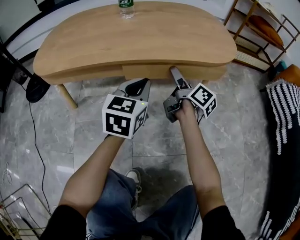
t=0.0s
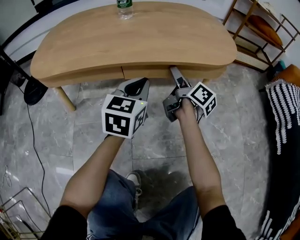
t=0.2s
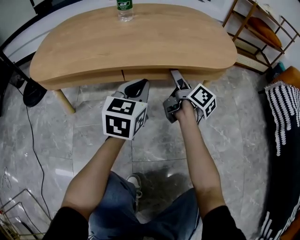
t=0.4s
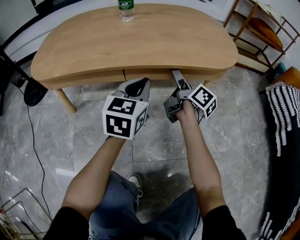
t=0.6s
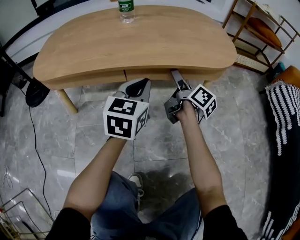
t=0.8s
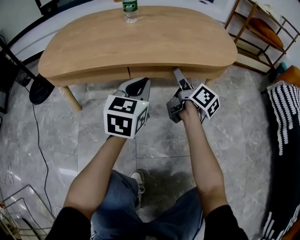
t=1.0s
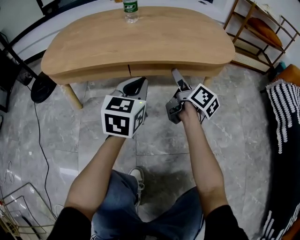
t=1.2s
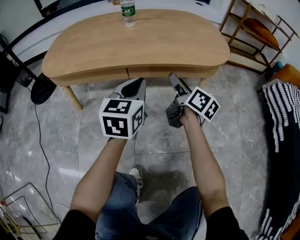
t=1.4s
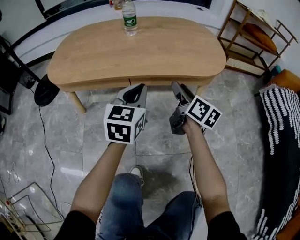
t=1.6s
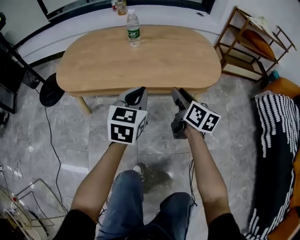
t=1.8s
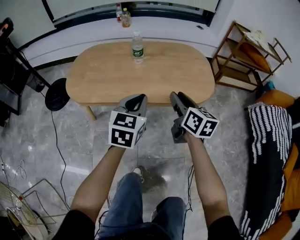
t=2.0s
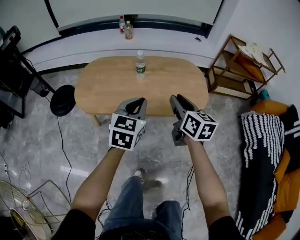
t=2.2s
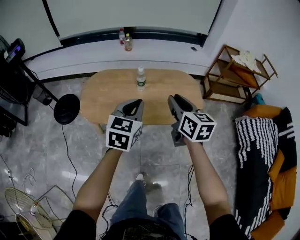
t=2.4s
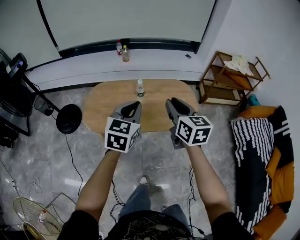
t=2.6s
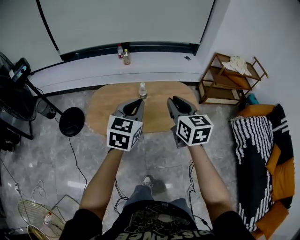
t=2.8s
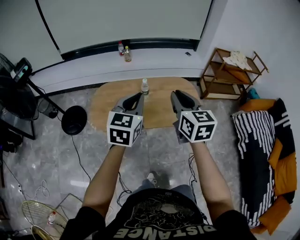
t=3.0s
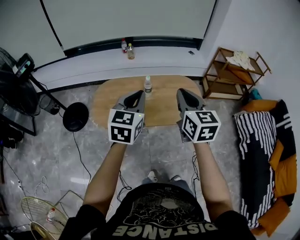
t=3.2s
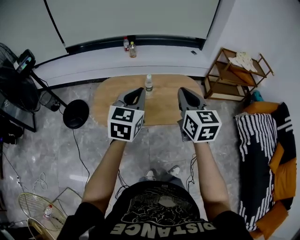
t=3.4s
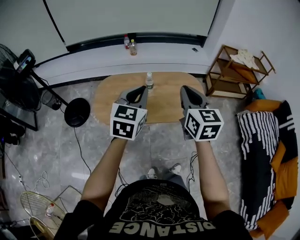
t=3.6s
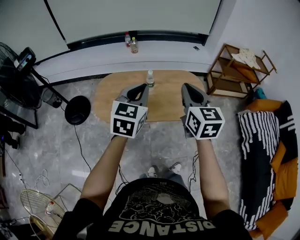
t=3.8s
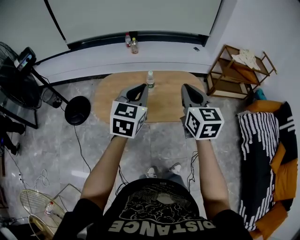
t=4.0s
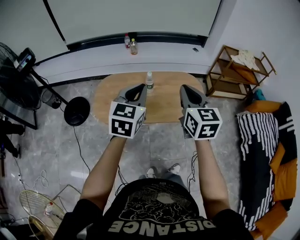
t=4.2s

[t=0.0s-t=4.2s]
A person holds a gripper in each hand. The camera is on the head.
t=0.0s to t=1.4s: The two grippers go approximately 5 cm upward.
t=1.4s to t=2.8s: Both grippers travel together upward, approximately 60 cm. The right gripper rotates around the line of its fingers by roughly 40 degrees, counterclockwise from behind, and closes.
t=2.8s to t=4.2s: The grippers make only small movements.

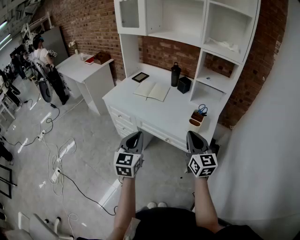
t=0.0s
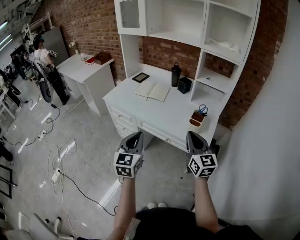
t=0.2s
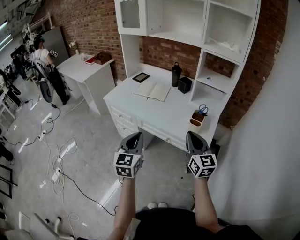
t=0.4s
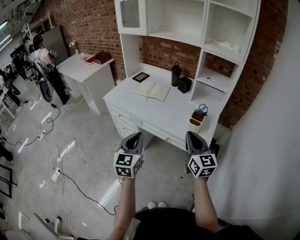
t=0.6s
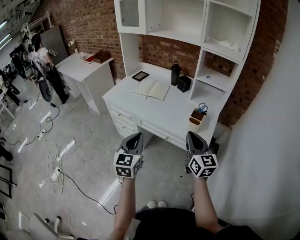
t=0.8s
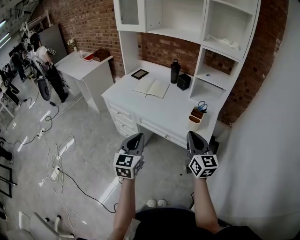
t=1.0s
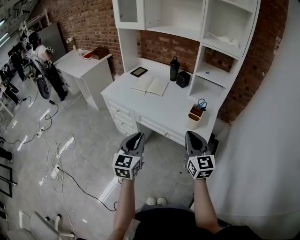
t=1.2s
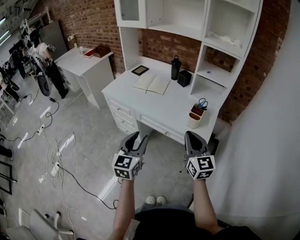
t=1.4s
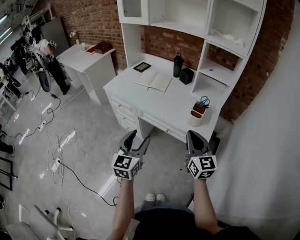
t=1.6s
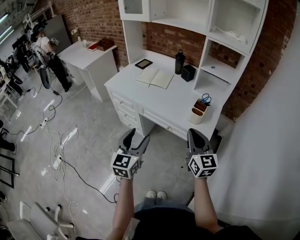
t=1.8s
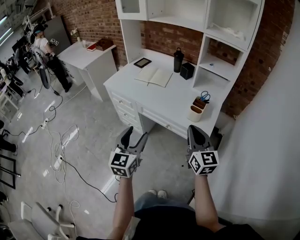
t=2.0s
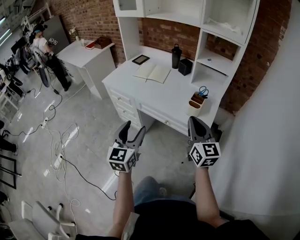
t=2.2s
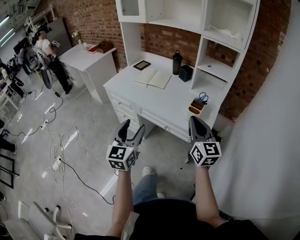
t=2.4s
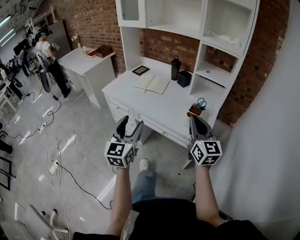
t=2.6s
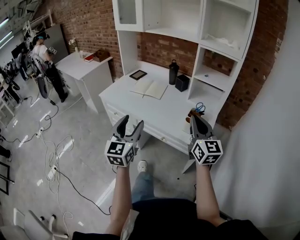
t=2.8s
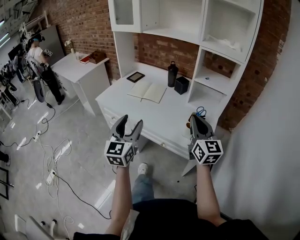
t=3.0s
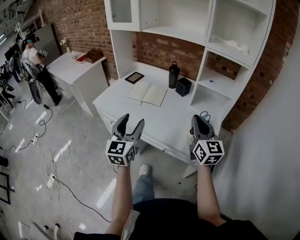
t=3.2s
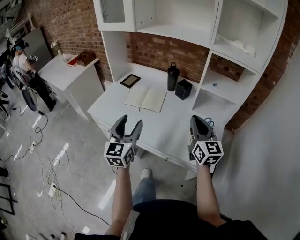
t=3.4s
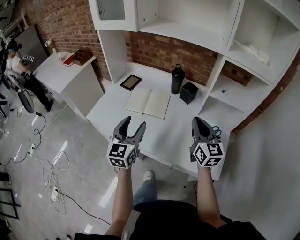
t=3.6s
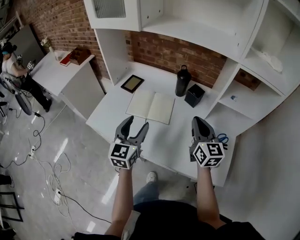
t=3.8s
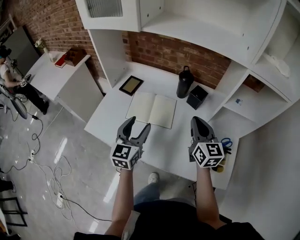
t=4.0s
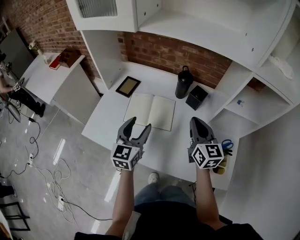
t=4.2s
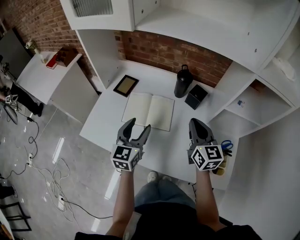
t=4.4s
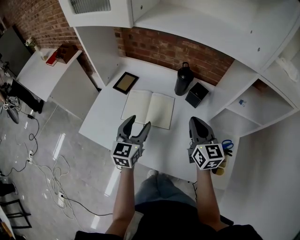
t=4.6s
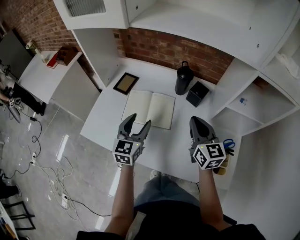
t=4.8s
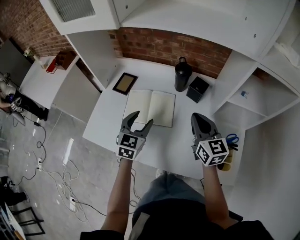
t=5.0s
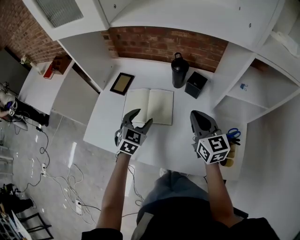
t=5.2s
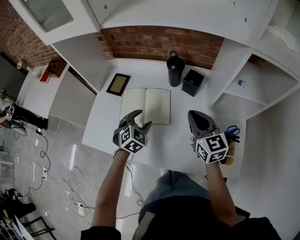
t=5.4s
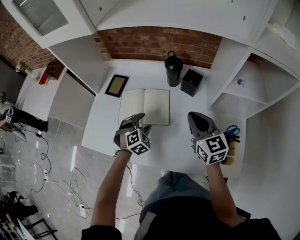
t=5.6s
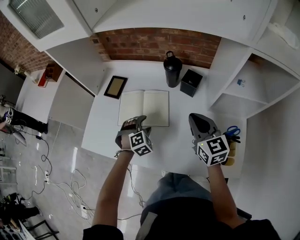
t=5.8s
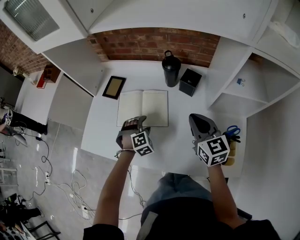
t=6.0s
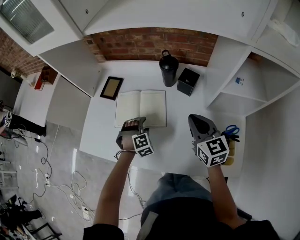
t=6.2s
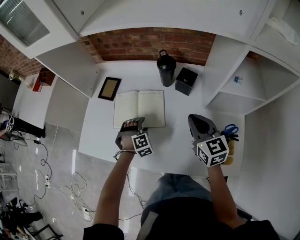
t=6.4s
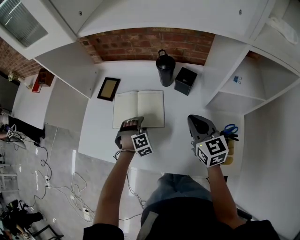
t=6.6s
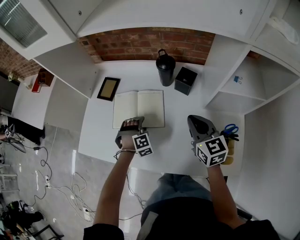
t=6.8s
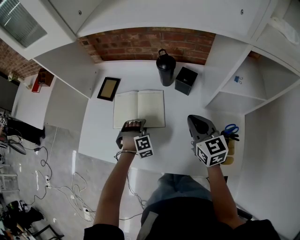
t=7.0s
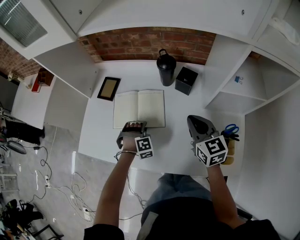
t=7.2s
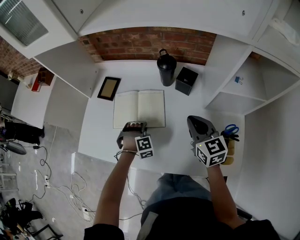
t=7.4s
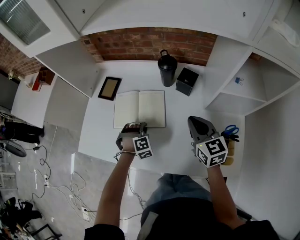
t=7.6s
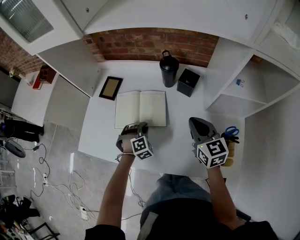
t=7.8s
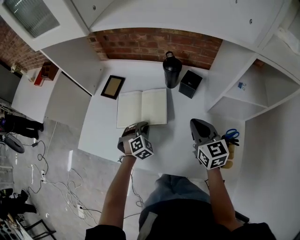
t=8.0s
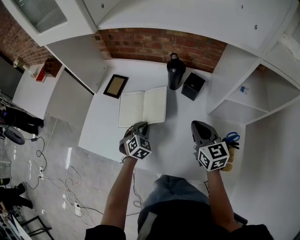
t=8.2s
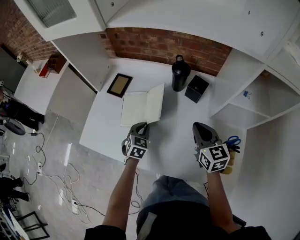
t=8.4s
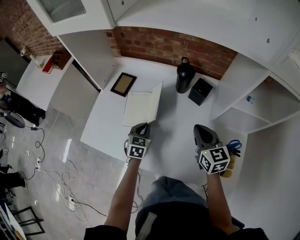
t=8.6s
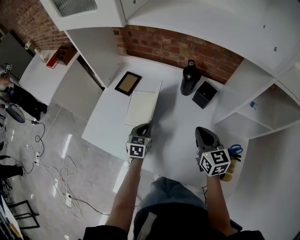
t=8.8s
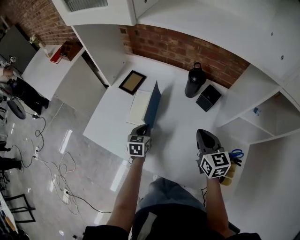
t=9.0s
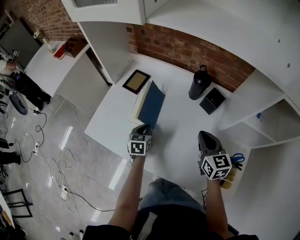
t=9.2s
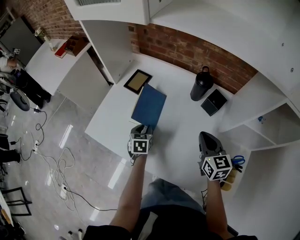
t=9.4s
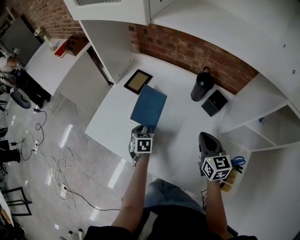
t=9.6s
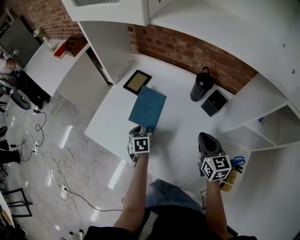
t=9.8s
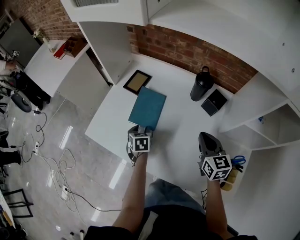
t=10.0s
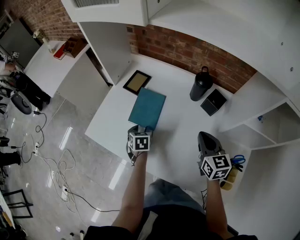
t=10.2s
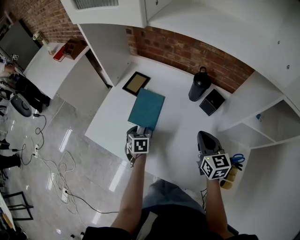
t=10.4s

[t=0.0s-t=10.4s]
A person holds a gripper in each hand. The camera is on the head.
t=0.0s to t=1.4s: The left gripper opens its fingers.
t=1.4s to t=3.0s: The two grippers go roughly 10 cm forward. The left gripper opens.
t=3.0s to t=4.4s: The grippers both shift forward by approximately 35 cm. The left gripper swivels about 20 degrees.
t=4.4s to t=6.0s: The right gripper ends up roughly 5 cm from where it was; the left gripper is displaced downward by roughly 20 cm, and rolls clockwise, seen from behind, by approximately 70 degrees.
t=6.0s to t=7.4s: The left gripper closes.
t=7.4s to t=9.0s: The left gripper travels to the left by roughly 5 cm, and twists about 90 degrees counterclockwise, seen from behind.
t=9.0s to t=10.4s: The left gripper heads to the left, covering roughly 5 cm, and opens its fingers.

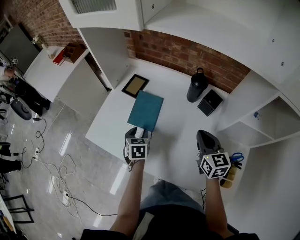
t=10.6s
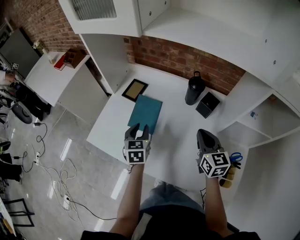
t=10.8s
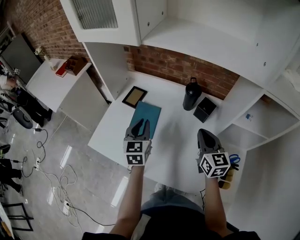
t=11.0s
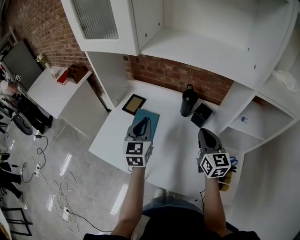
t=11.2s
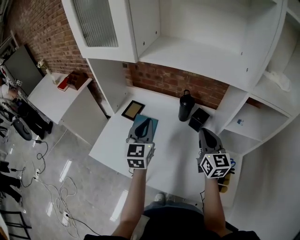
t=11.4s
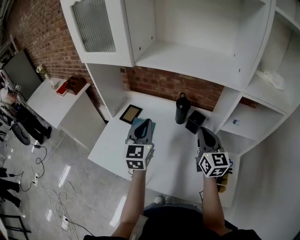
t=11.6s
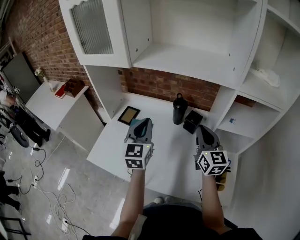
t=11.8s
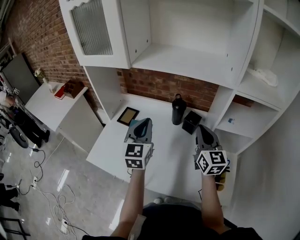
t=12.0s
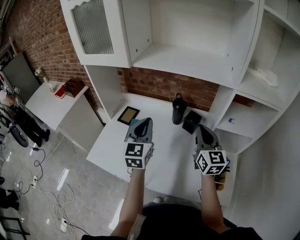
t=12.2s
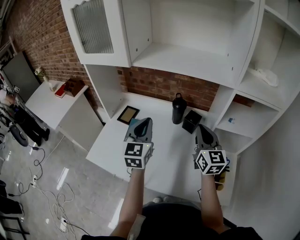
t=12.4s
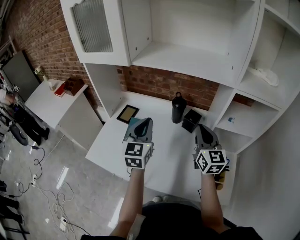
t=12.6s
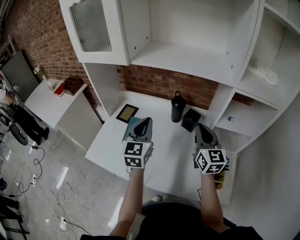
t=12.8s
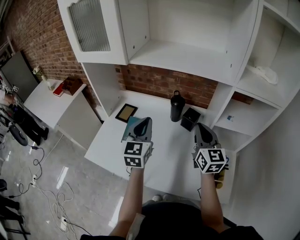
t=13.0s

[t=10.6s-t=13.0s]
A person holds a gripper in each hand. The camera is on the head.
t=10.6s to t=11.8s: The left gripper is displaced upward by approximately 30 cm, tips its fingers upward by approximately 40 degrees, and closes up. Meanwhile the right gripper travels upward by some 15 cm, and swivels approximately 20 degrees.
t=11.8s to t=13.0s: The grippers move only a little.

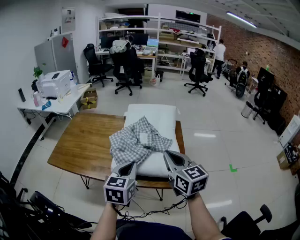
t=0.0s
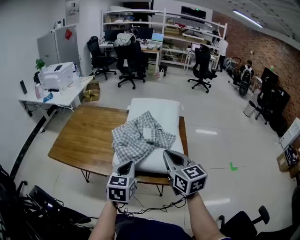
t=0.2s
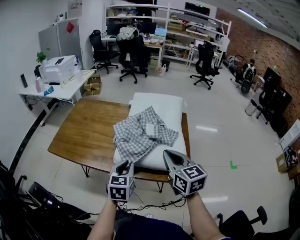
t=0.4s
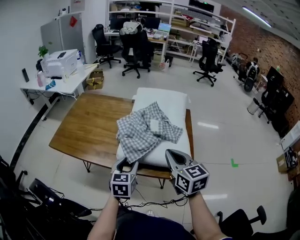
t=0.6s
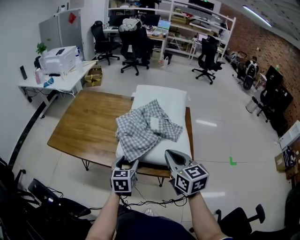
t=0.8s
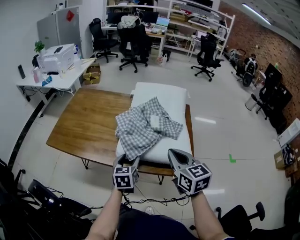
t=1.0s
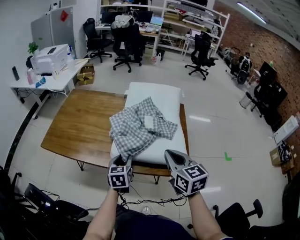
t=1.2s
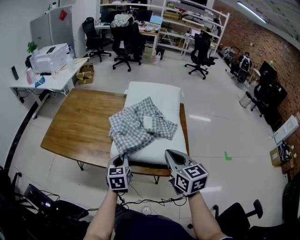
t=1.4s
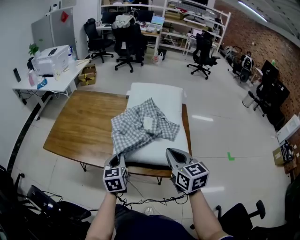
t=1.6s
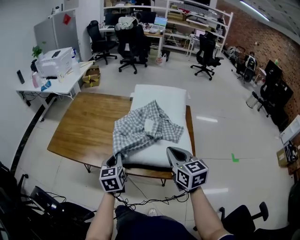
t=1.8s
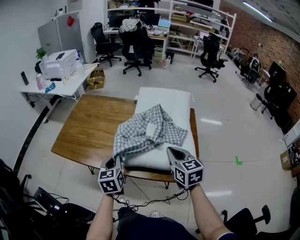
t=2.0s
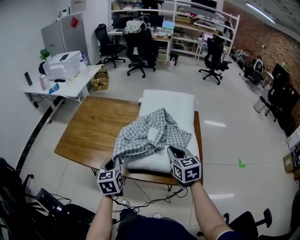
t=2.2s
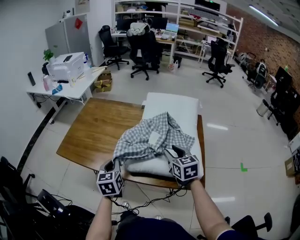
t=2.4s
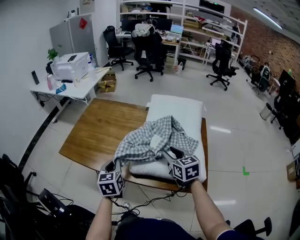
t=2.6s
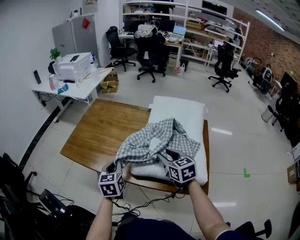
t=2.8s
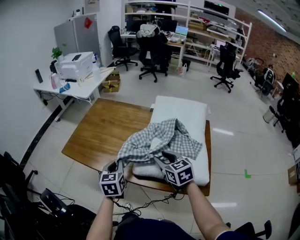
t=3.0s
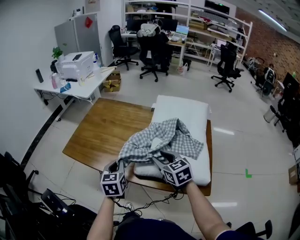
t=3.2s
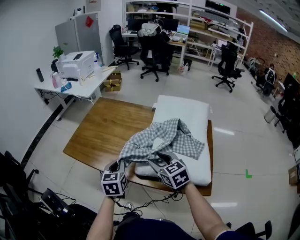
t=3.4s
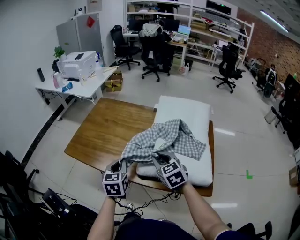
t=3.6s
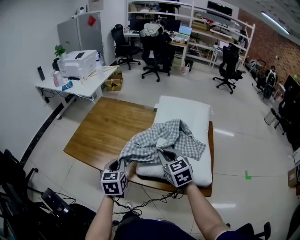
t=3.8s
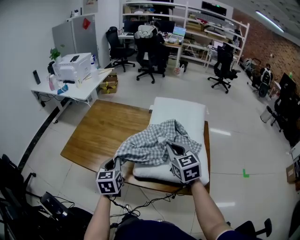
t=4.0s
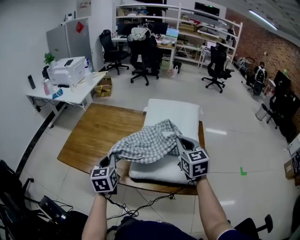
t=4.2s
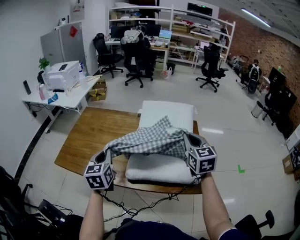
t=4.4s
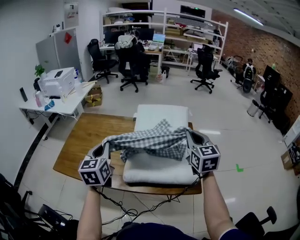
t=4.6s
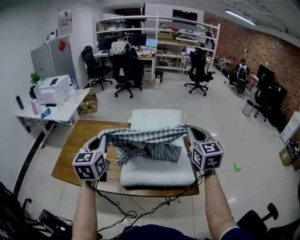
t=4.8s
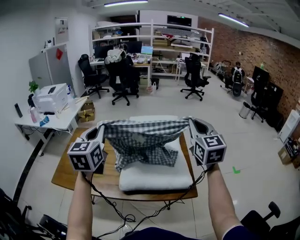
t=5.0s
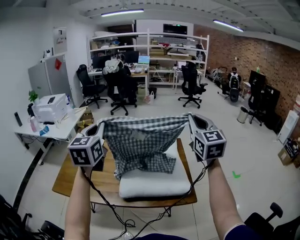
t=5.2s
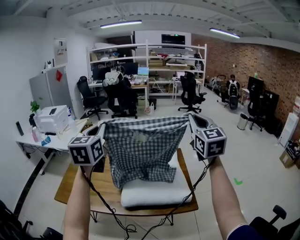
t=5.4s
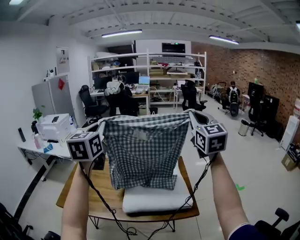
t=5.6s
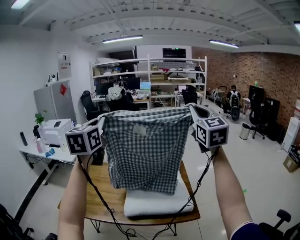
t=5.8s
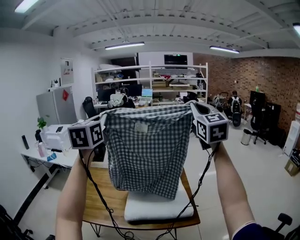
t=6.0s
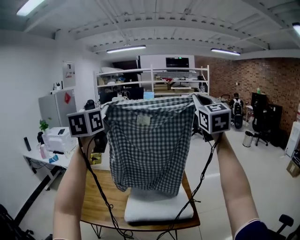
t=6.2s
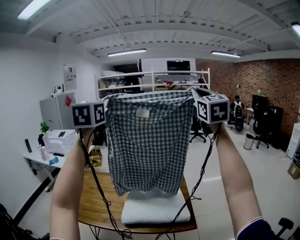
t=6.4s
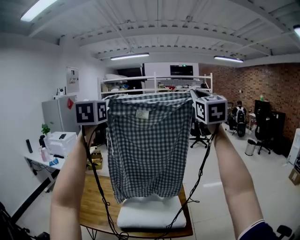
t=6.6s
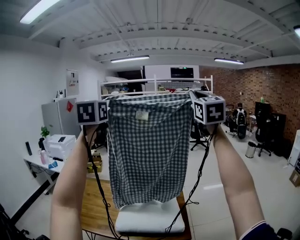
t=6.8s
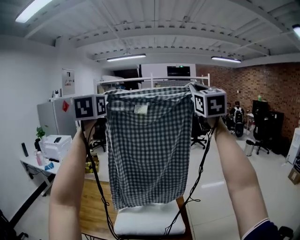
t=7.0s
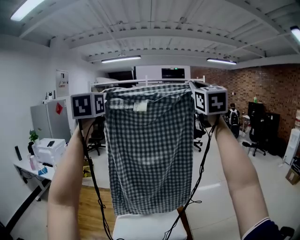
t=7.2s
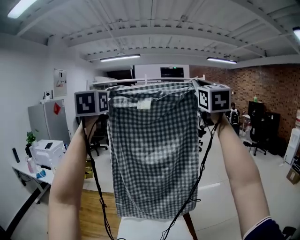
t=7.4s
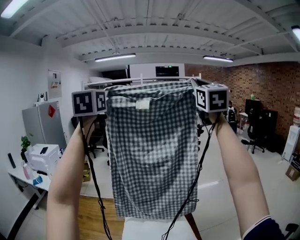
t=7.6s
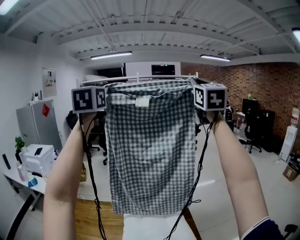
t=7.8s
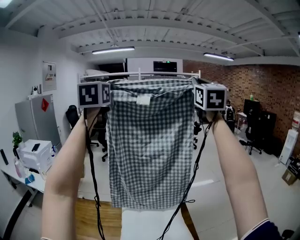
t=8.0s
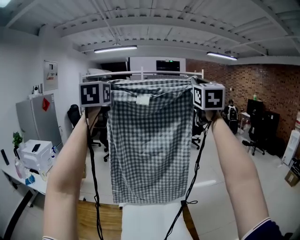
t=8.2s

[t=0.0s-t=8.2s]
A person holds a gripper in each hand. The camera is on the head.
t=0.0s to t=1.6s: The right gripper heads downward, covering about 5 cm, while the left gripper is displaced downward, to the left and forward by some 15 cm, and opens, then closes again.
t=1.6s to t=3.2s: The left gripper moves to the left, approximately 10 cm. The right gripper travels forward, to the left and downward by about 15 cm, rotates roughly 20 degrees, and opens.
t=3.2s to t=5.0s: The grippers both shift upward by some 30 cm. The left gripper turns by about 30 degrees. Meanwhile the right gripper tips its fingers upward by about 30 degrees, and closes its fingers.
t=5.0s to t=6.6s: Both grippers travel together upward, approximately 35 cm.
t=6.6s to t=8.2s: The grippers both shift forward by about 30 cm.
